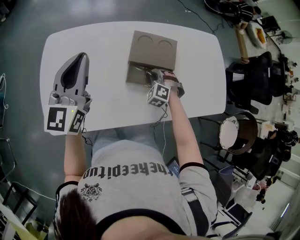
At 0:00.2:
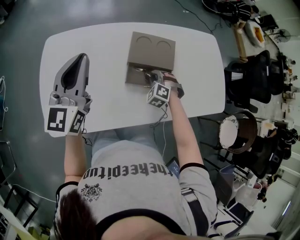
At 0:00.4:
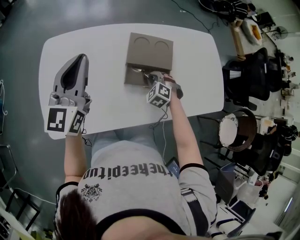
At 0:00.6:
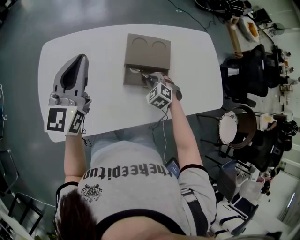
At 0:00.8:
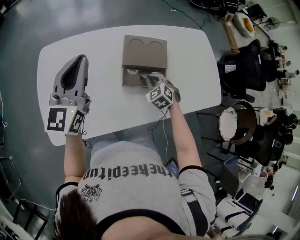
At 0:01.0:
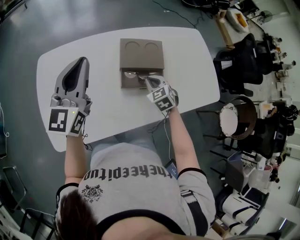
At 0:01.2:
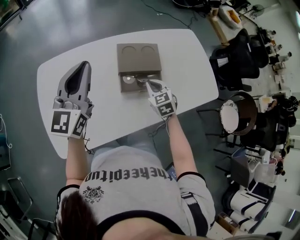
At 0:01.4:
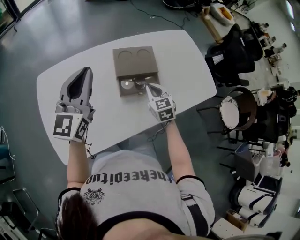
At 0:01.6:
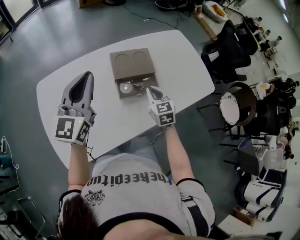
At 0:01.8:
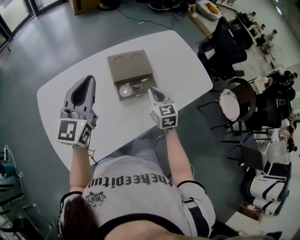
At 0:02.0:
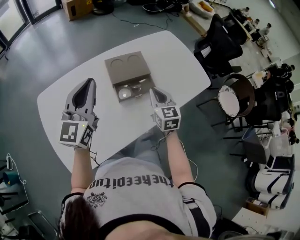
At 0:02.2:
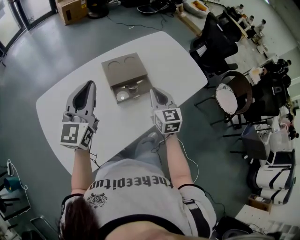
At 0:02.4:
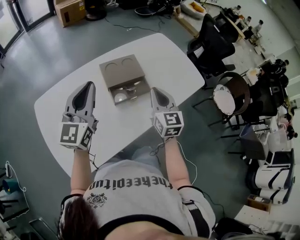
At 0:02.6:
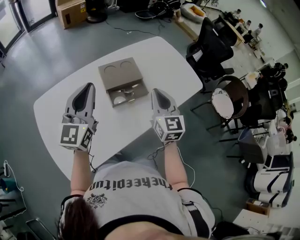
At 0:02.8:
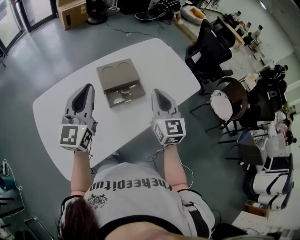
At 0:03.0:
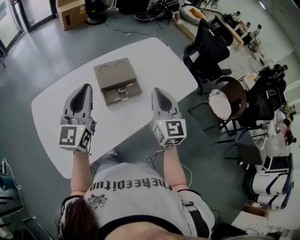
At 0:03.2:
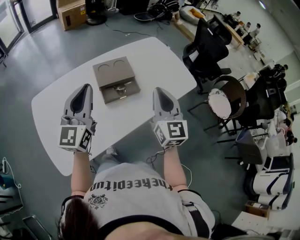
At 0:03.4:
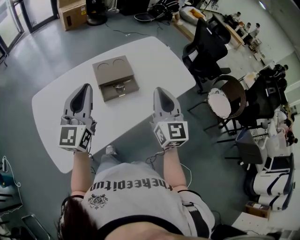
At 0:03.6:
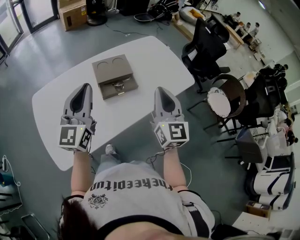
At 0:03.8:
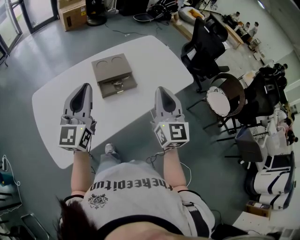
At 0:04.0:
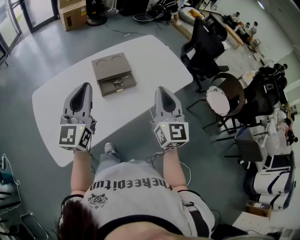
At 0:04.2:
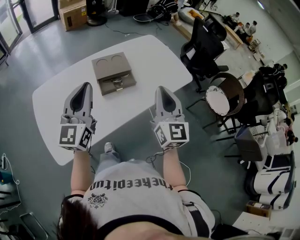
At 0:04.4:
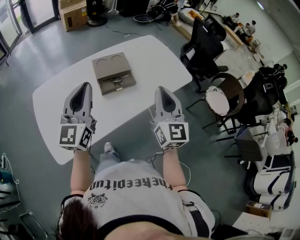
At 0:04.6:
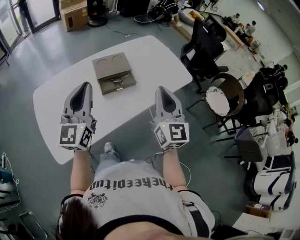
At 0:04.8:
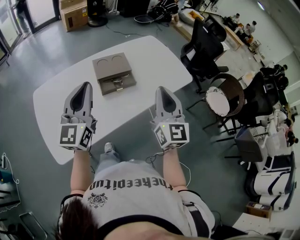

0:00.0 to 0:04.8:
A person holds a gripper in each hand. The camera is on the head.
0:00.0 to 0:01.6: The left gripper swivels roughly 20 degrees. The right gripper goes roughly 15 cm upward and backward, and rotates around the line of its fingers by some 70 degrees, clockwise from behind.
0:01.6 to 0:03.2: The left gripper travels to the right and backward by approximately 10 cm. The right gripper goes some 25 cm upward, backward and to the right, and points its fingers some 30 degrees further upward.
0:03.2 to 0:04.8: The two grippers go roughly 10 cm backward.

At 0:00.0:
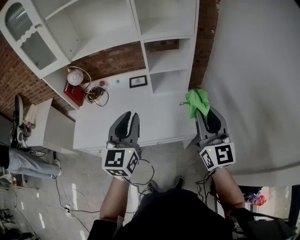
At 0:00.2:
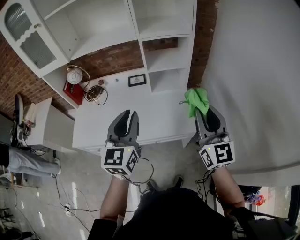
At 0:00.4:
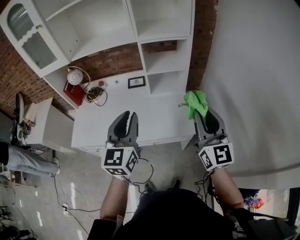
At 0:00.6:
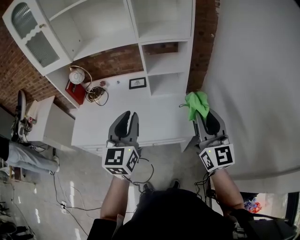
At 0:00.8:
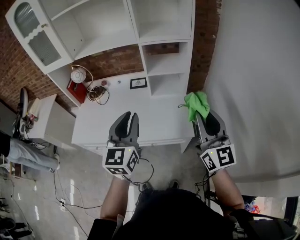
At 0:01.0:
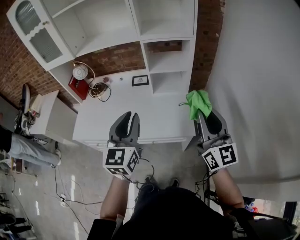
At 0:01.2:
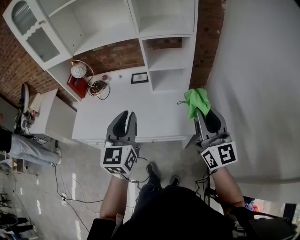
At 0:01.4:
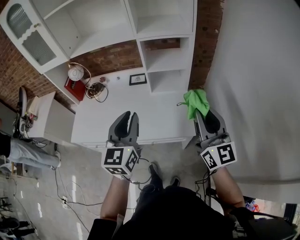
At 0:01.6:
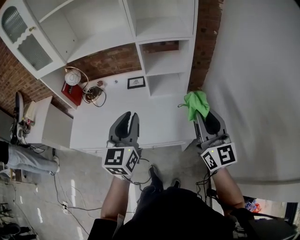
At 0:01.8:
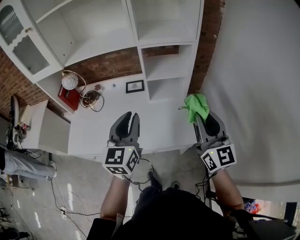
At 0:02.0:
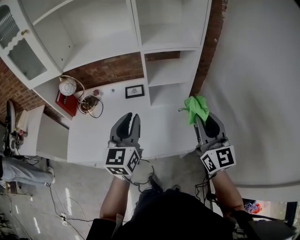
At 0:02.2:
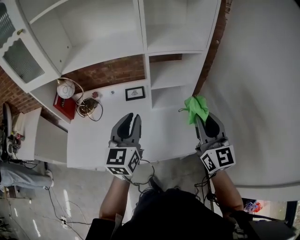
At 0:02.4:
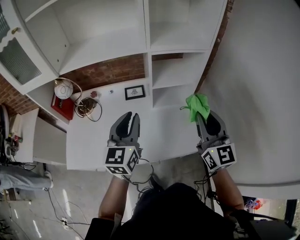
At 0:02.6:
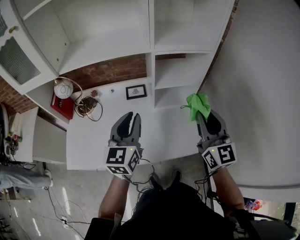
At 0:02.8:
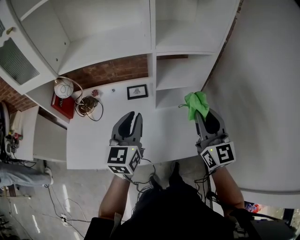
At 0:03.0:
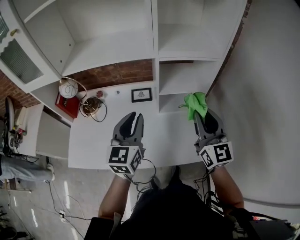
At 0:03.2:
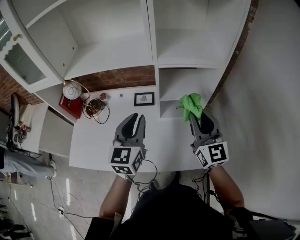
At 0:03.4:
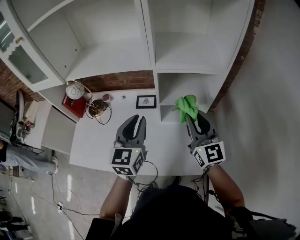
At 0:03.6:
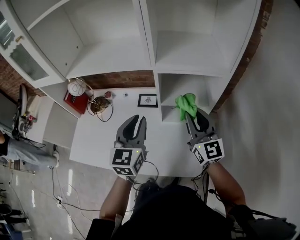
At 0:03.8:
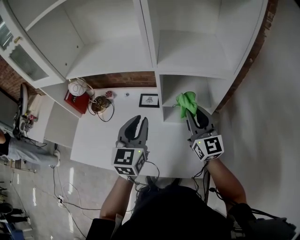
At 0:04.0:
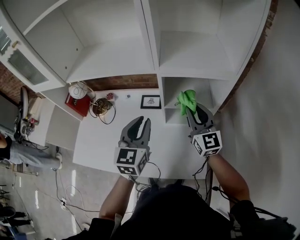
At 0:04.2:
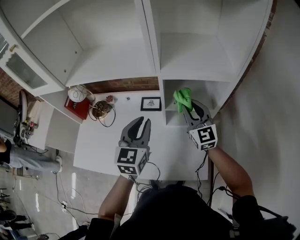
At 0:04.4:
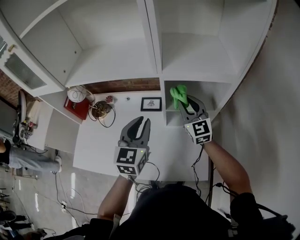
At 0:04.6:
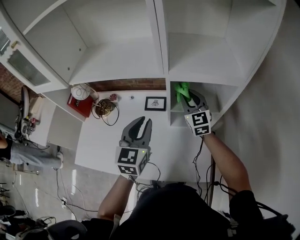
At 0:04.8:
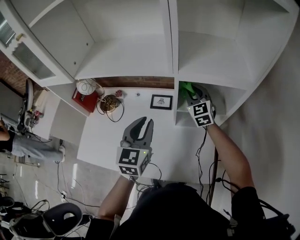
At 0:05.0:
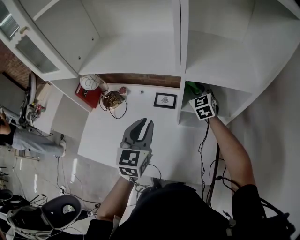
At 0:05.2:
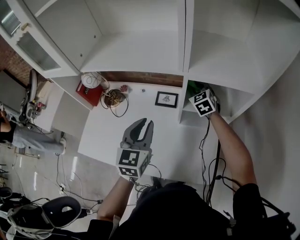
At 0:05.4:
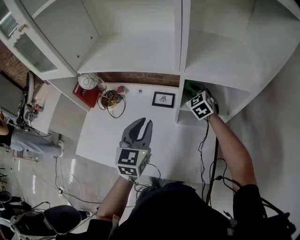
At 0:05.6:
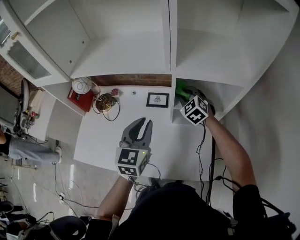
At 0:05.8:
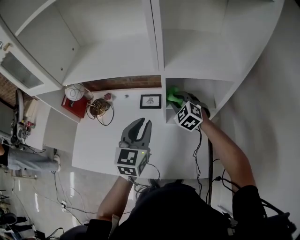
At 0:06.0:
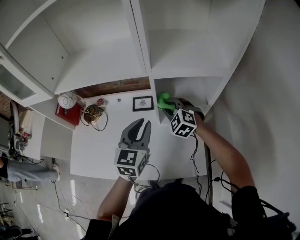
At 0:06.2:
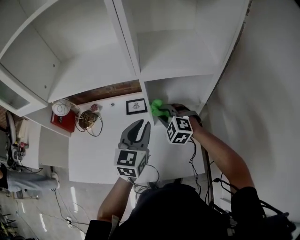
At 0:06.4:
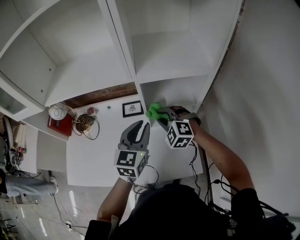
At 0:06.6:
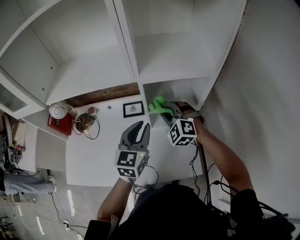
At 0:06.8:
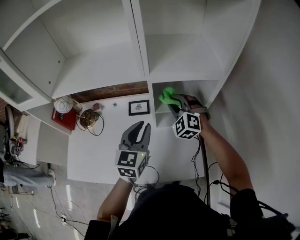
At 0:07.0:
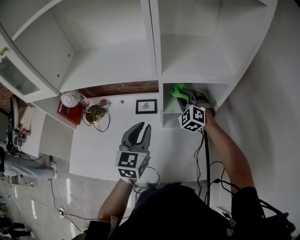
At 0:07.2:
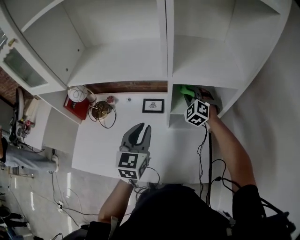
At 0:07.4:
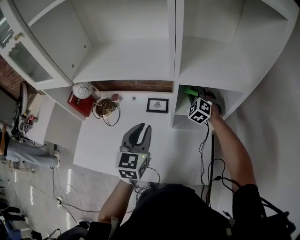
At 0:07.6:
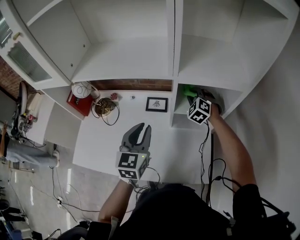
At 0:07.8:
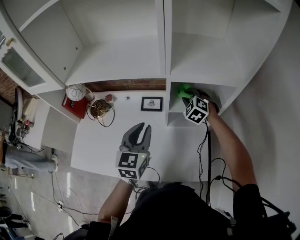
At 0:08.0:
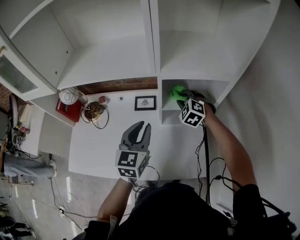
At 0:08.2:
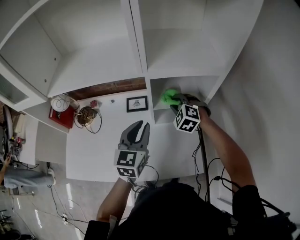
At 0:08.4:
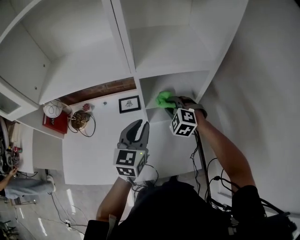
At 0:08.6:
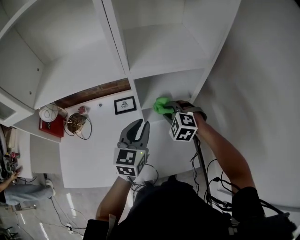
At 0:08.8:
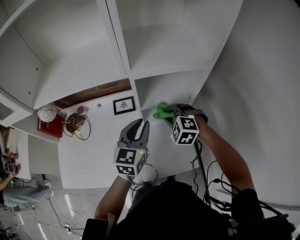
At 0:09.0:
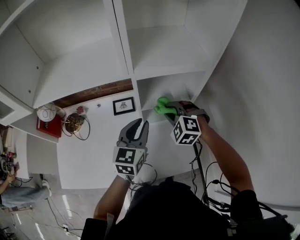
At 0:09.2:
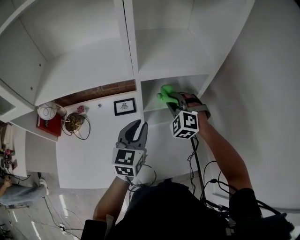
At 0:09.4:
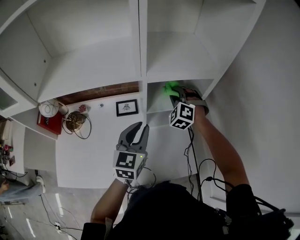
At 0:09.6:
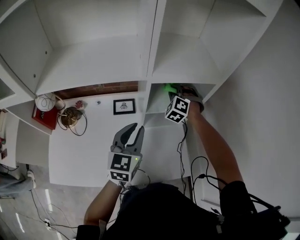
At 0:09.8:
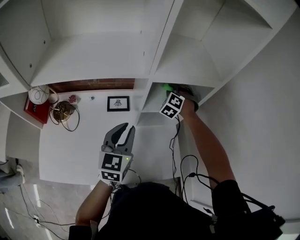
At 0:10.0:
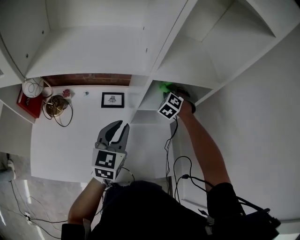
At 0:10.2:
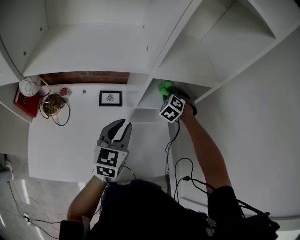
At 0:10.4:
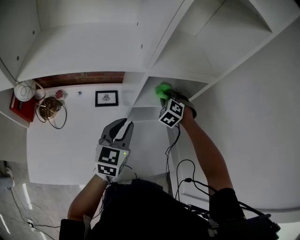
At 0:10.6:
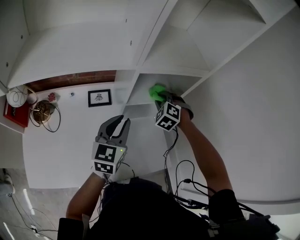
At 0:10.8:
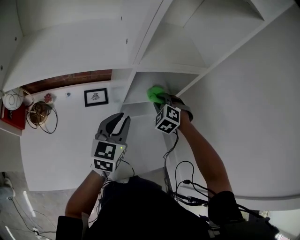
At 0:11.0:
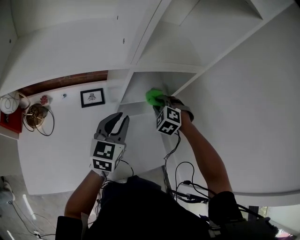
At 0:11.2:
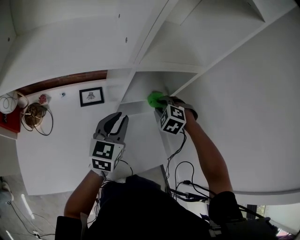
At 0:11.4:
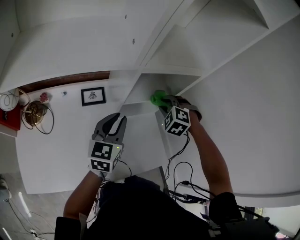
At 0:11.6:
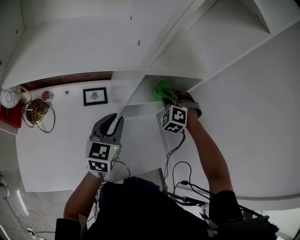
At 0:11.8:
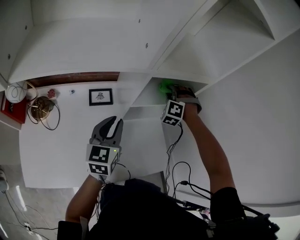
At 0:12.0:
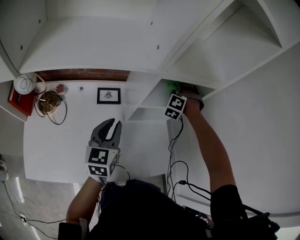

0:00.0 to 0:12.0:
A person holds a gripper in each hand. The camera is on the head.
0:00.0 to 0:01.6: The right gripper shifts by about 5 cm. Meanwhile the left gripper ends up some 5 cm from where it was.
0:01.6 to 0:03.0: Both grippers travel together forward and to the left, about 20 cm.
0:03.0 to 0:04.4: The left gripper heads forward, covering some 10 cm, while the right gripper goes roughly 20 cm forward.
0:04.4 to 0:06.0: The right gripper goes about 10 cm downward, travels forward and back again, approximately 10 cm each way, and points its fingers approximately 30 degrees further downward. The left gripper reaches roughly 5 cm to the left, then returns.
0:06.0 to 0:07.6: The left gripper shifts approximately 5 cm to the left. Meanwhile the right gripper goes roughly 10 cm forward.
0:07.6 to 0:09.0: The left gripper moves to the right, about 10 cm. Meanwhile the right gripper moves backward, some 15 cm.
0:09.0 to 0:10.4: The right gripper heads forward, covering roughly 10 cm, and turns by roughly 20 degrees.
0:10.4 to 0:12.0: The right gripper is displaced forward by about 5 cm, and changes its angle by about 30 degrees. Meanwhile the left gripper goes about 5 cm to the left.

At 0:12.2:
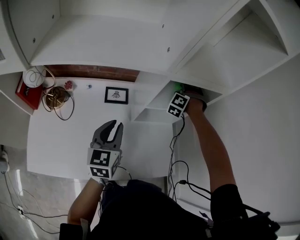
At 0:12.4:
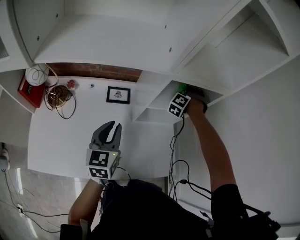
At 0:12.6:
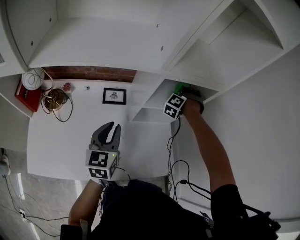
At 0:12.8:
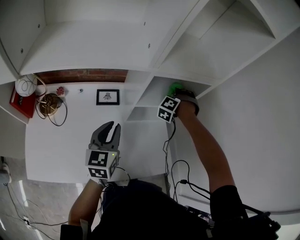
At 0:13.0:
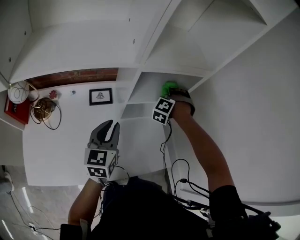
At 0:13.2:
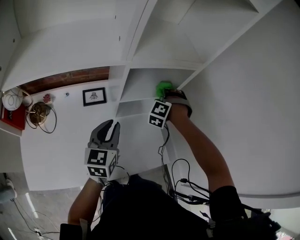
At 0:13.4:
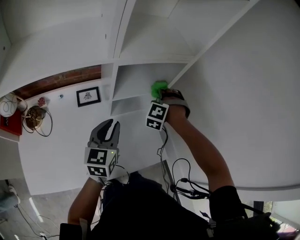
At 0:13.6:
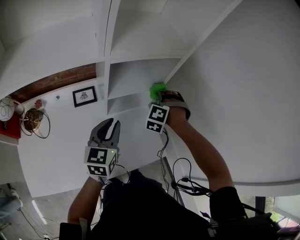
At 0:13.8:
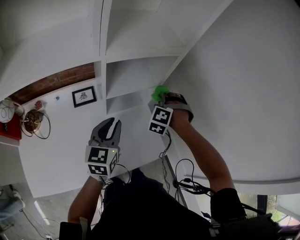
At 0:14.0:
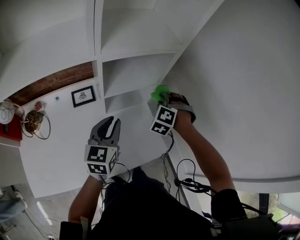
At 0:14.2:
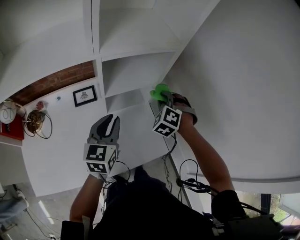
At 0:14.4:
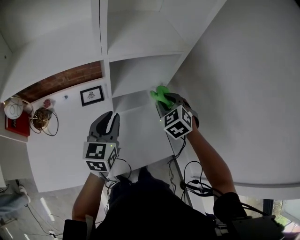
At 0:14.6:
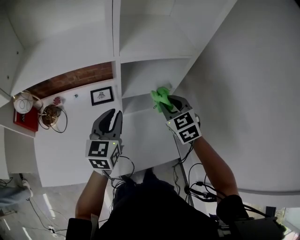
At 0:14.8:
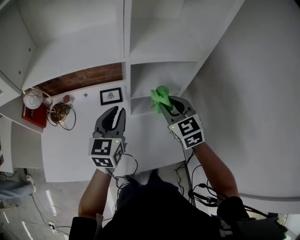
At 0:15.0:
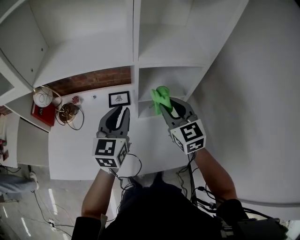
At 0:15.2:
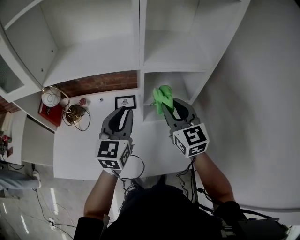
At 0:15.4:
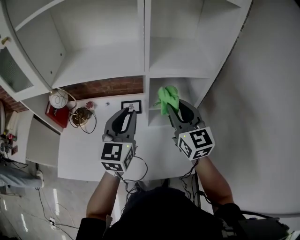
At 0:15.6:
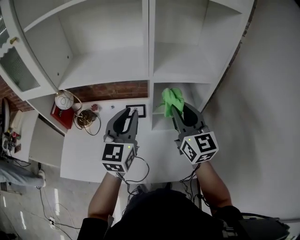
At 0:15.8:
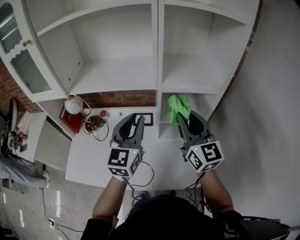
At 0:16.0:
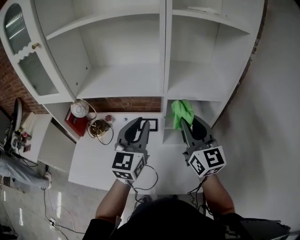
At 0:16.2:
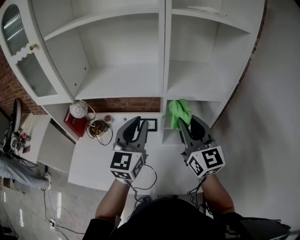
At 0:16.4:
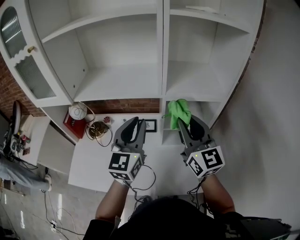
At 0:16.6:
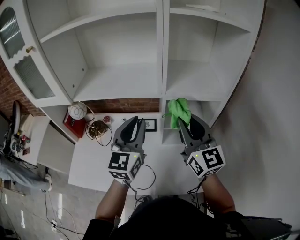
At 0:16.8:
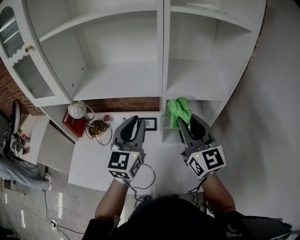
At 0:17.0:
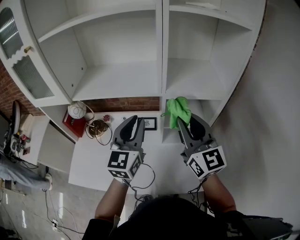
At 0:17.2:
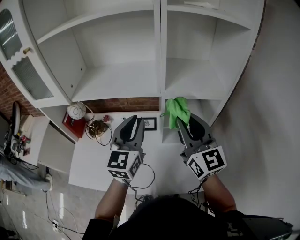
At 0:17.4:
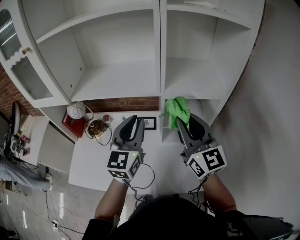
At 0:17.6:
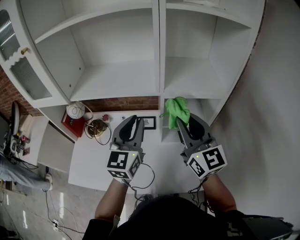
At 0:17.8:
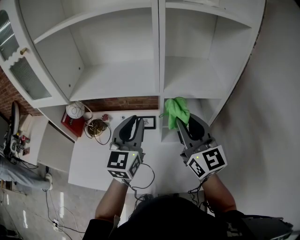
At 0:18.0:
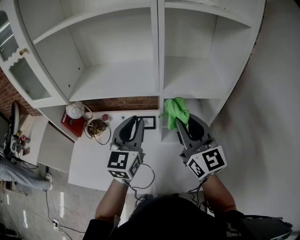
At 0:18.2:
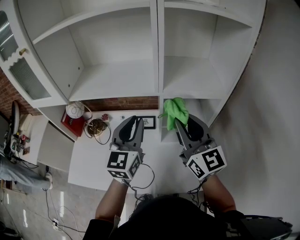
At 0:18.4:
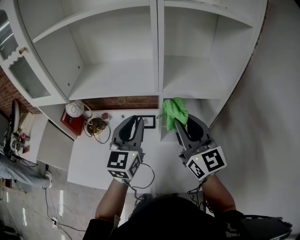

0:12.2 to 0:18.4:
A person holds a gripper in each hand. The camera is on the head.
0:12.2 to 0:13.8: The right gripper moves to the right and backward, approximately 20 cm, while the left gripper heads to the right and forward, covering about 15 cm.
0:13.8 to 0:15.4: The grippers both shift upward by approximately 20 cm. The left gripper rotates roughly 30 degrees, while the right gripper angles its fingers upward, by roughly 40 degrees.
0:15.4 to 0:16.8: Both grippers move upward, approximately 5 cm.
0:16.8 to 0:18.4: The grippers move only a little.
